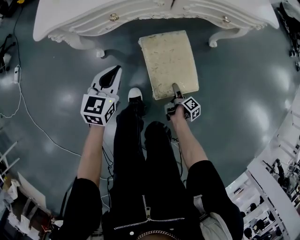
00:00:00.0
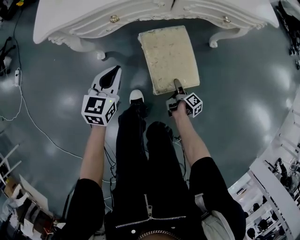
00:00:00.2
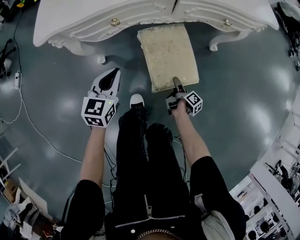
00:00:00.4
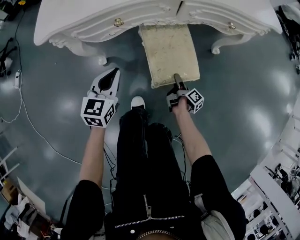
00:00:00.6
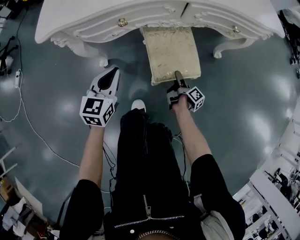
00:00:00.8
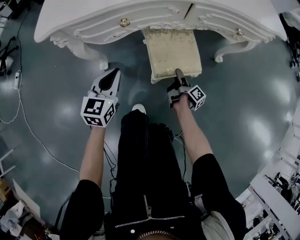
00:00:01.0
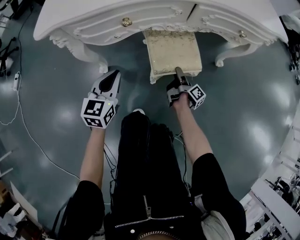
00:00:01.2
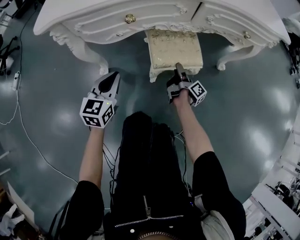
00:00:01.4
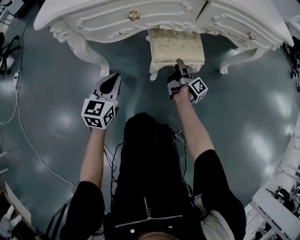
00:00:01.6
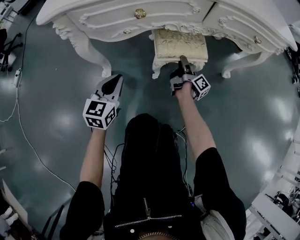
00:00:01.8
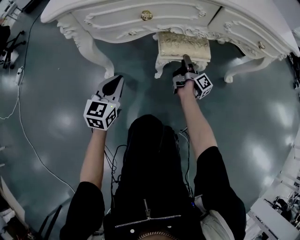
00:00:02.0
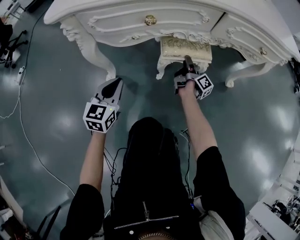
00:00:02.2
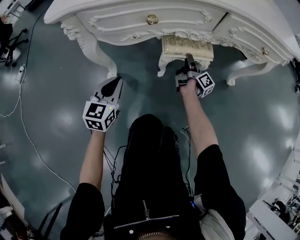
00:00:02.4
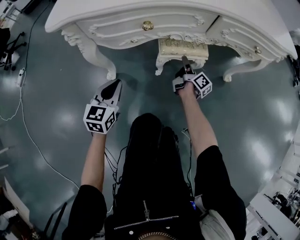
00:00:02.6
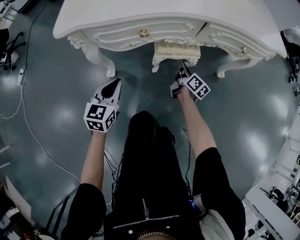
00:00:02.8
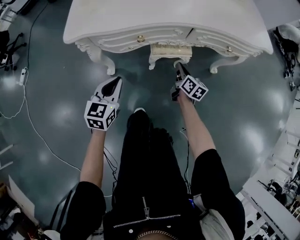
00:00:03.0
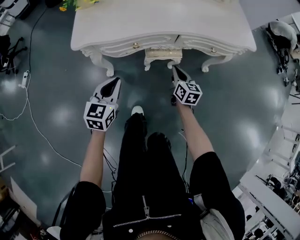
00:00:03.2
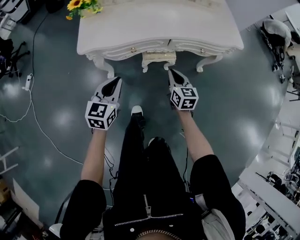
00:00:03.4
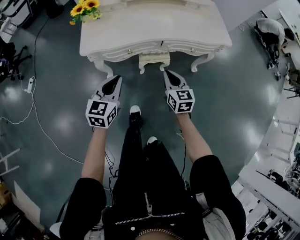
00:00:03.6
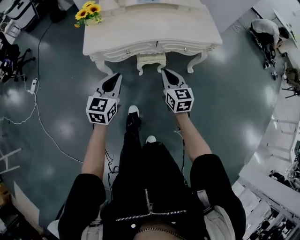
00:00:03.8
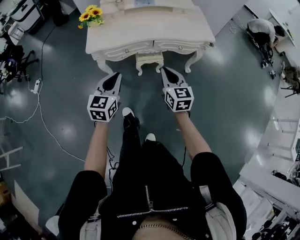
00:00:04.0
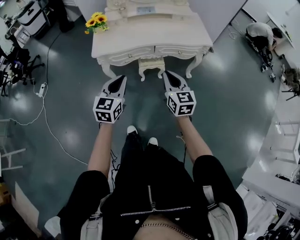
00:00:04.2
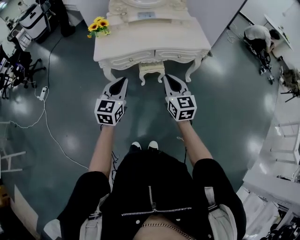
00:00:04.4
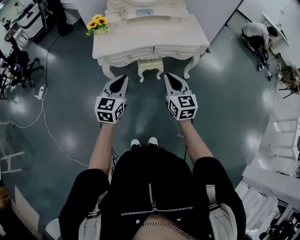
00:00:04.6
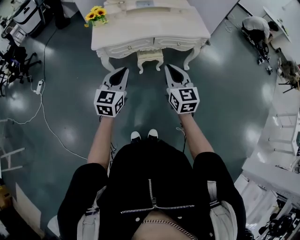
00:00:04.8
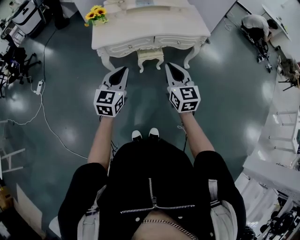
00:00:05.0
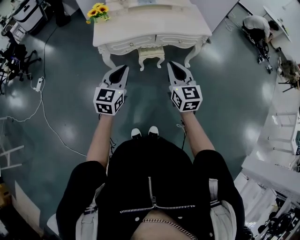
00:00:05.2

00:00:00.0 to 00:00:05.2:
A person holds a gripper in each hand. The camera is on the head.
00:00:00.0 to 00:00:01.8: The right gripper shifts roughly 30 cm forward, tips its fingers upward by some 40 degrees, and closes its fingers. Meanwhile the left gripper goes about 15 cm downward and to the left.
00:00:01.8 to 00:00:03.4: The two grippers go about 40 cm upward. The right gripper twists about 70 degrees counterclockwise, seen from behind, and closes.
00:00:03.4 to 00:00:05.2: The grippers both shift upward and backward by roughly 35 cm. The right gripper swivels roughly 20 degrees.

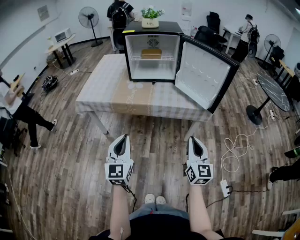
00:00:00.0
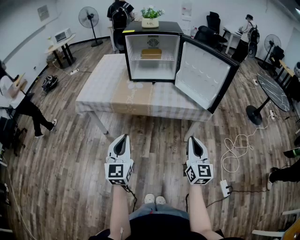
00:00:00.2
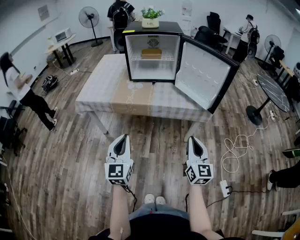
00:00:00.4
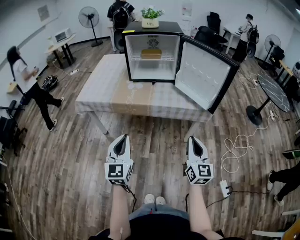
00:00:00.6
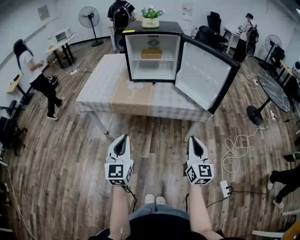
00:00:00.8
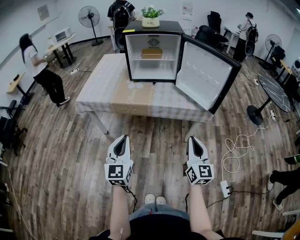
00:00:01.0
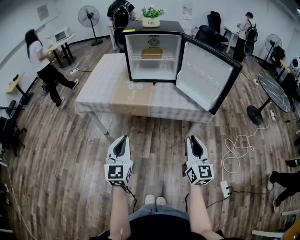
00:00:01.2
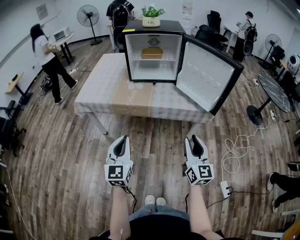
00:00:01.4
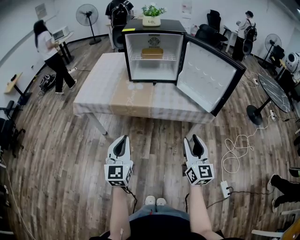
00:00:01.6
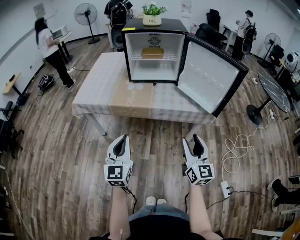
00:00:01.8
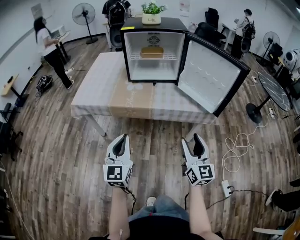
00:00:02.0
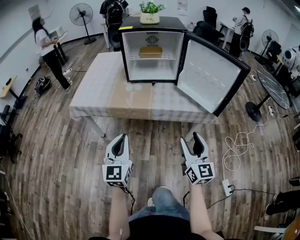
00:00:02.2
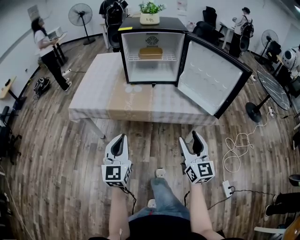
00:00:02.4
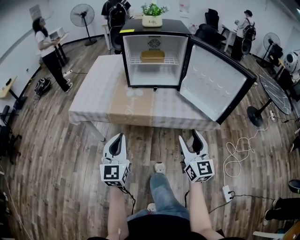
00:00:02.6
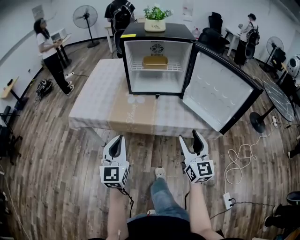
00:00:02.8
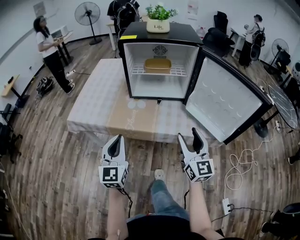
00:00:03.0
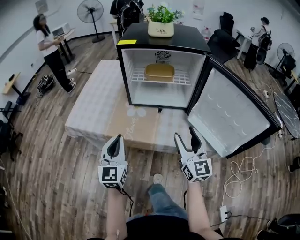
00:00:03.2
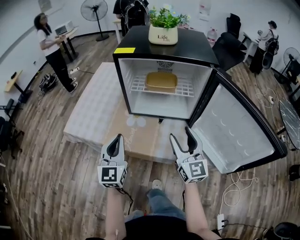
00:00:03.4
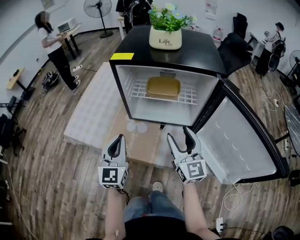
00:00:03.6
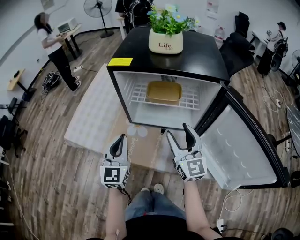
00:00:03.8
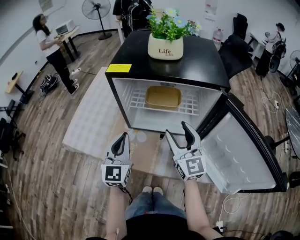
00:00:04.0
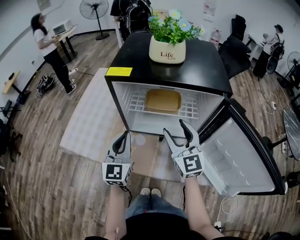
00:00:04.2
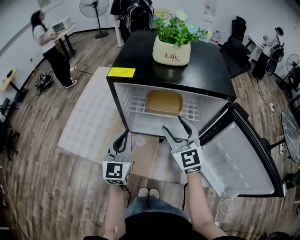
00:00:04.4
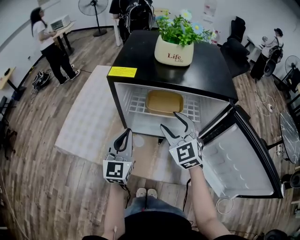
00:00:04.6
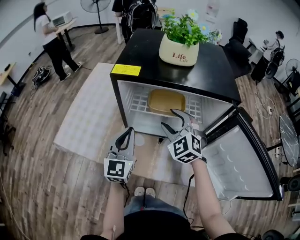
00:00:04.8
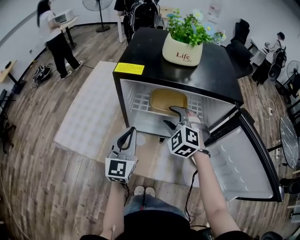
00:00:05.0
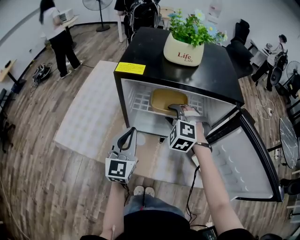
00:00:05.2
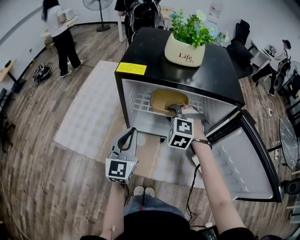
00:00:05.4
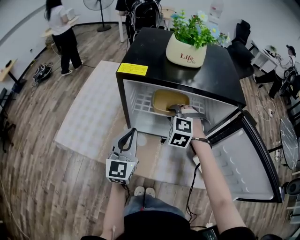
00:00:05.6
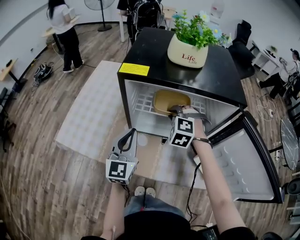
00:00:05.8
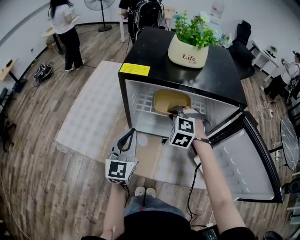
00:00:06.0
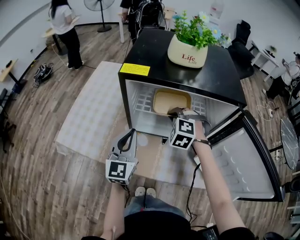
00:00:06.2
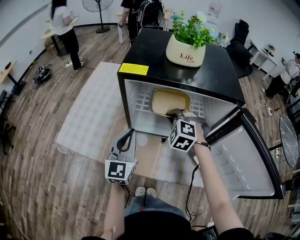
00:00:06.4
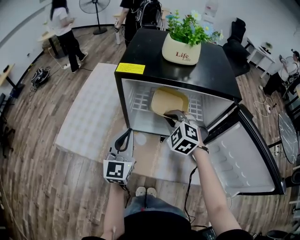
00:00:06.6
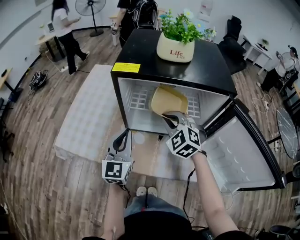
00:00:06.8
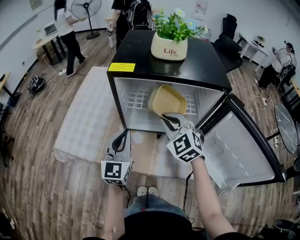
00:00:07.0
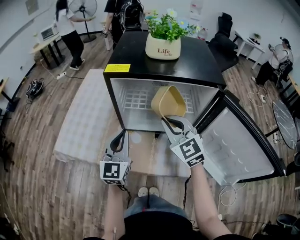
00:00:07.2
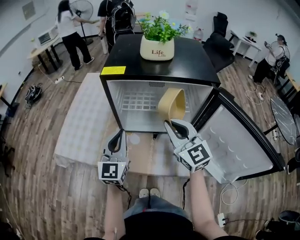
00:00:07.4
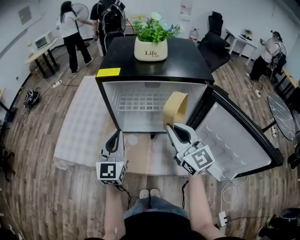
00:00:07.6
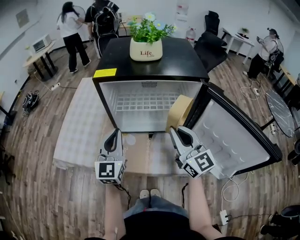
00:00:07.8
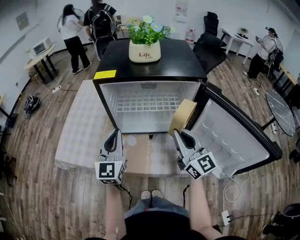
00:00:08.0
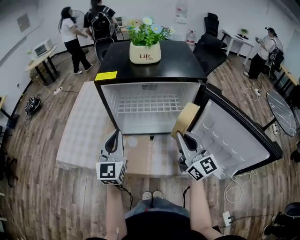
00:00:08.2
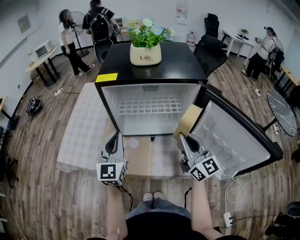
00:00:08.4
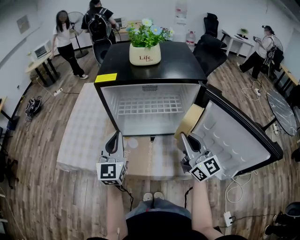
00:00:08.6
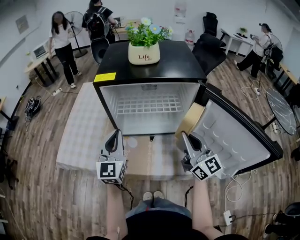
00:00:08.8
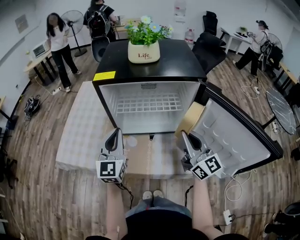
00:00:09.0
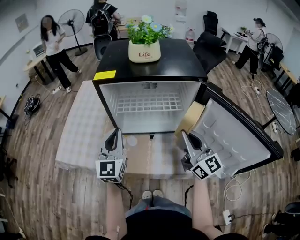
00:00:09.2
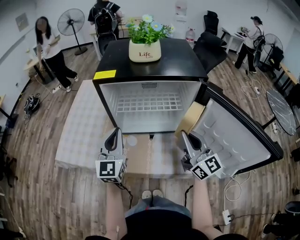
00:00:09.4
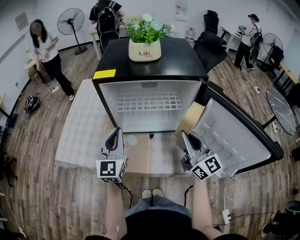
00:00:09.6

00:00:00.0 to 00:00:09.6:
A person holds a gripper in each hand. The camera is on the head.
00:00:00.0 to 00:00:01.6: The right gripper opens.
00:00:01.6 to 00:00:03.2: Both grippers move forward, roughly 30 cm. The right gripper opens up.
00:00:03.2 to 00:00:04.8: Both grippers move forward, roughly 30 cm. The right gripper points its fingers roughly 30 degrees further downward.
00:00:04.8 to 00:00:06.4: The right gripper shifts by roughly 5 cm, turns by roughly 30 degrees, and closes its fingers.
00:00:06.4 to 00:00:08.0: The left gripper ends up about 5 cm from where it was. The right gripper goes some 25 cm backward, upward and to the right, and angles its fingers upward, by about 60 degrees.
00:00:08.0 to 00:00:09.6: The grippers move only a little.

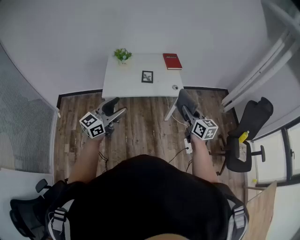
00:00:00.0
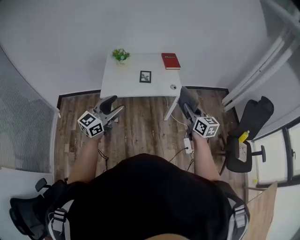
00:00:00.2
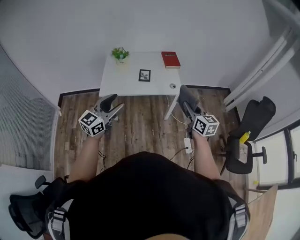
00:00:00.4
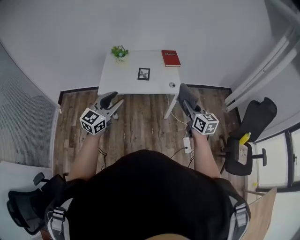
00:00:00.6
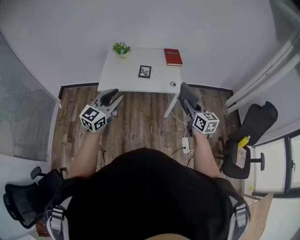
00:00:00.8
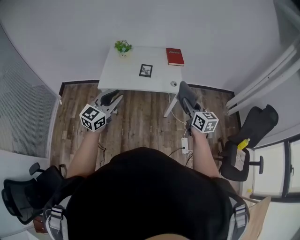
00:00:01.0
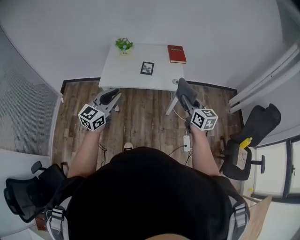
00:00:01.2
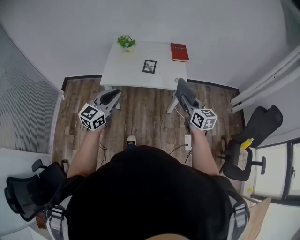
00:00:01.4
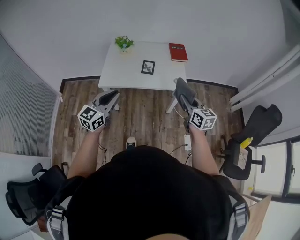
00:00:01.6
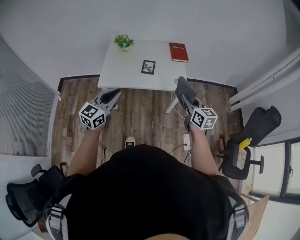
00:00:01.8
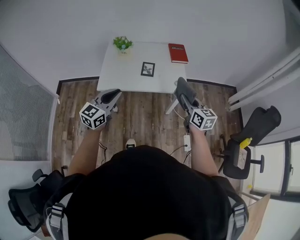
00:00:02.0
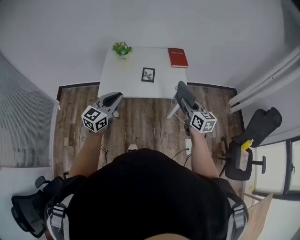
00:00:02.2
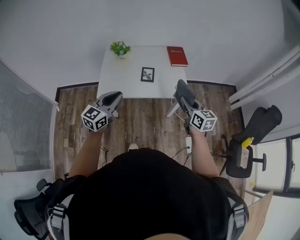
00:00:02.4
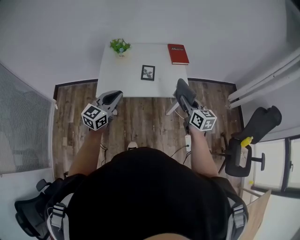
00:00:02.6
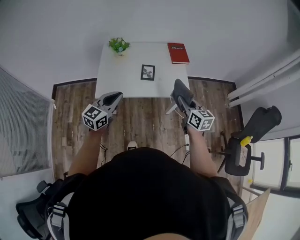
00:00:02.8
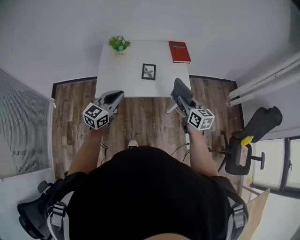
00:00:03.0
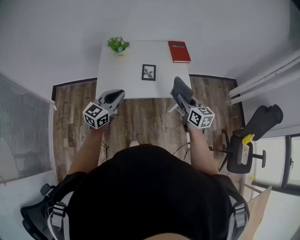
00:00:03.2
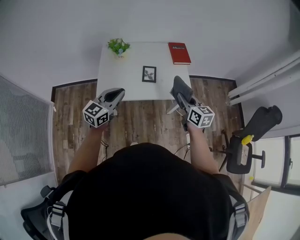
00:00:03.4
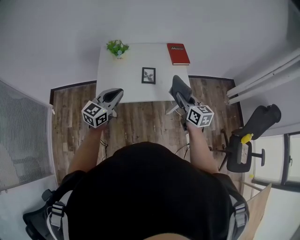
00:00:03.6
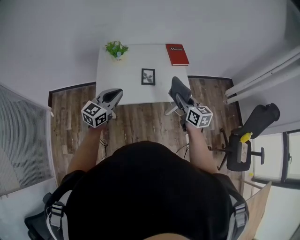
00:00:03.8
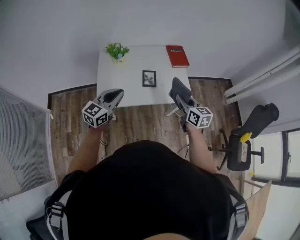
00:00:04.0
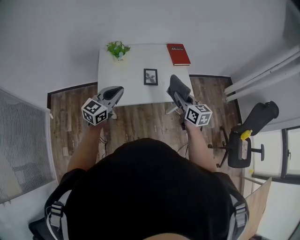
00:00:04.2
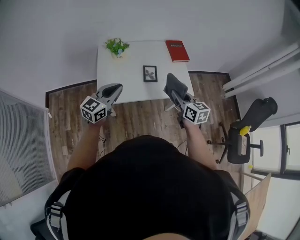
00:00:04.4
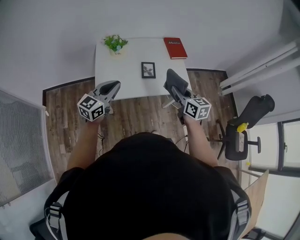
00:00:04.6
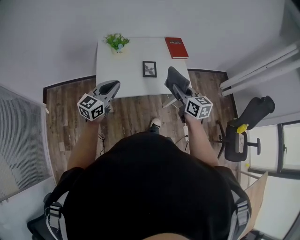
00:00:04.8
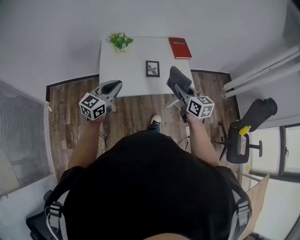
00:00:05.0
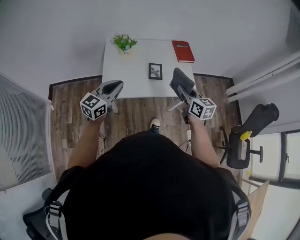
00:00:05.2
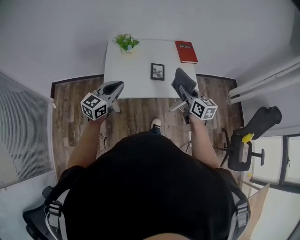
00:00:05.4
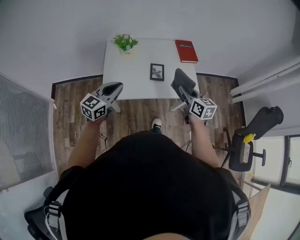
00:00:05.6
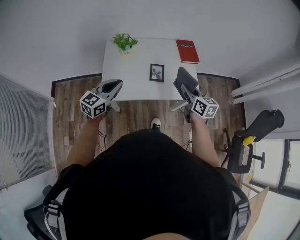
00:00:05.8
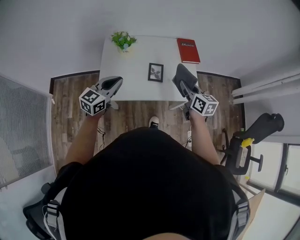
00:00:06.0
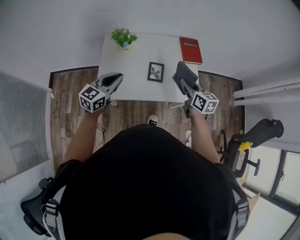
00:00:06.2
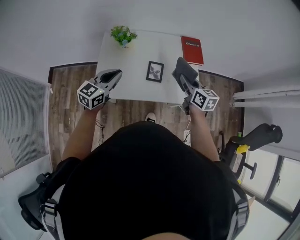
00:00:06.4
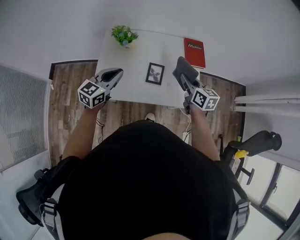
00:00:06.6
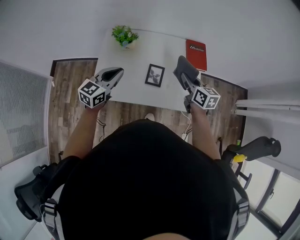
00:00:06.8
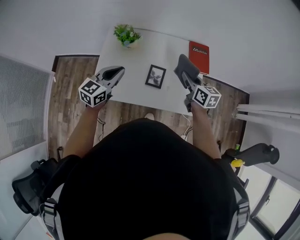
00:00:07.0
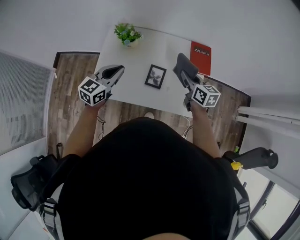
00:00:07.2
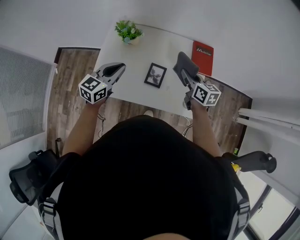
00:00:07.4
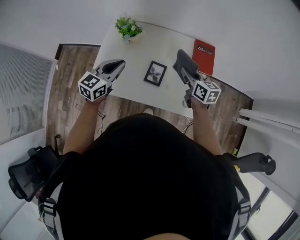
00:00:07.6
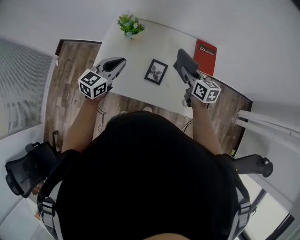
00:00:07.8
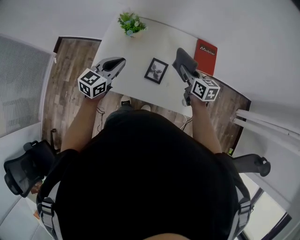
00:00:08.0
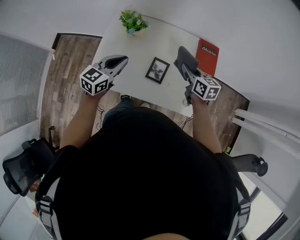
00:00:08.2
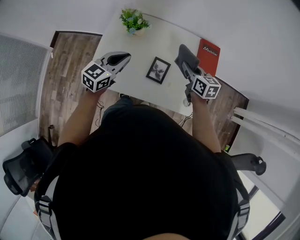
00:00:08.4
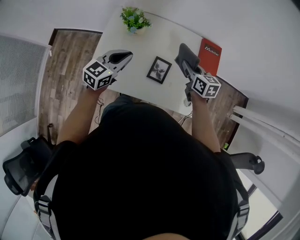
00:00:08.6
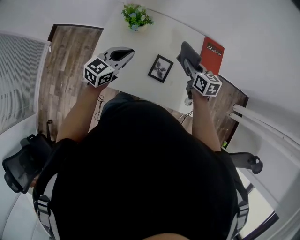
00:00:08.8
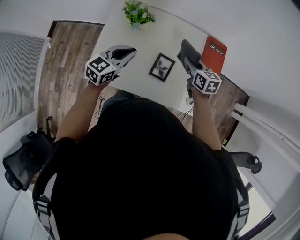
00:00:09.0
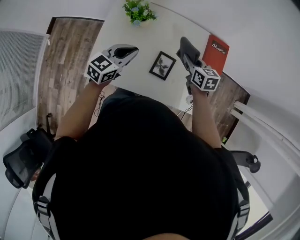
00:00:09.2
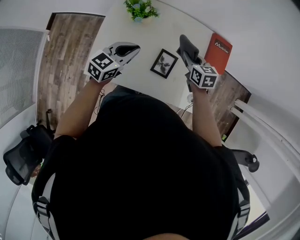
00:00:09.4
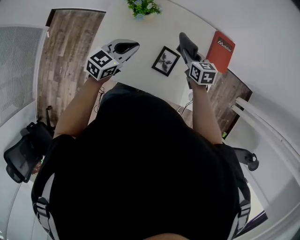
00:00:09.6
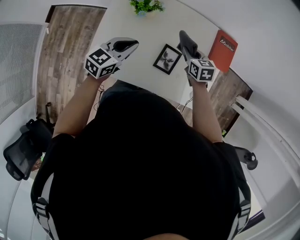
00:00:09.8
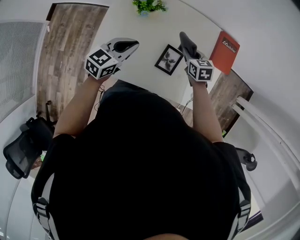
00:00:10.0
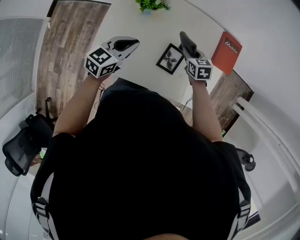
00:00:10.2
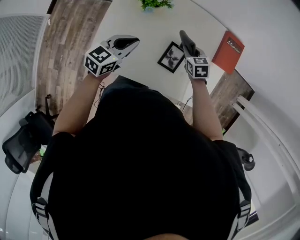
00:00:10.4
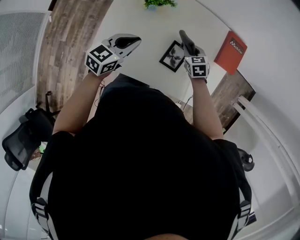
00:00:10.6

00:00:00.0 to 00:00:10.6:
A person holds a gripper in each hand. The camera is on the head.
00:00:00.0 to 00:00:01.6: Both grippers move forward, approximately 10 cm. The left gripper turns by approximately 20 degrees, and closes its fingers.
00:00:01.6 to 00:00:03.0: The left gripper moves forward, approximately 15 cm; the right gripper shifts about 15 cm forward and to the left.
00:00:03.0 to 00:00:04.6: The right gripper goes some 10 cm to the left. Meanwhile the left gripper goes roughly 10 cm to the left and forward.
00:00:04.6 to 00:00:06.0: The left gripper shifts roughly 5 cm forward, while the right gripper moves forward, some 10 cm.
00:00:06.0 to 00:00:07.6: Both grippers move forward, some 15 cm.
00:00:07.6 to 00:00:09.0: The left gripper is displaced downward and forward by roughly 10 cm, while the right gripper heads forward and downward, covering about 10 cm.
00:00:09.0 to 00:00:10.6: The right gripper heads downward, covering roughly 15 cm, and rotates approximately 30 degrees, while the left gripper goes roughly 5 cm downward.
